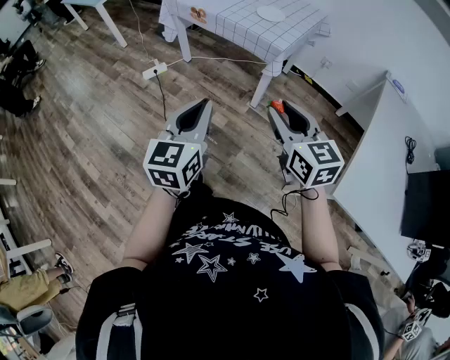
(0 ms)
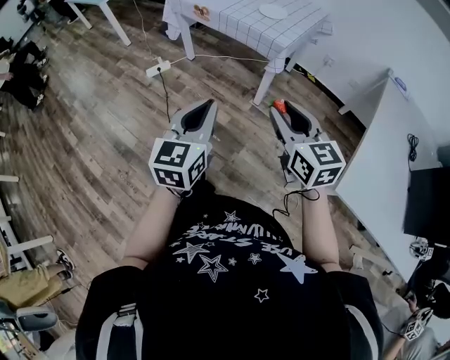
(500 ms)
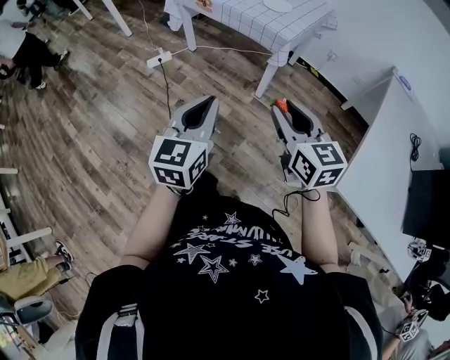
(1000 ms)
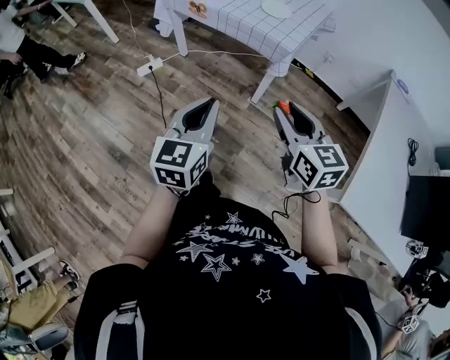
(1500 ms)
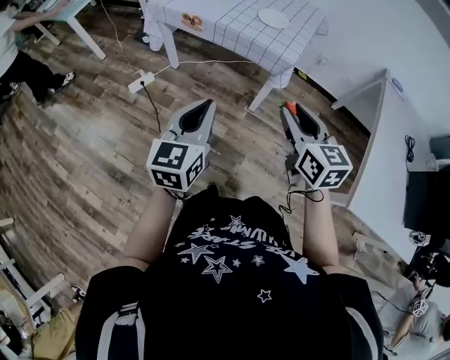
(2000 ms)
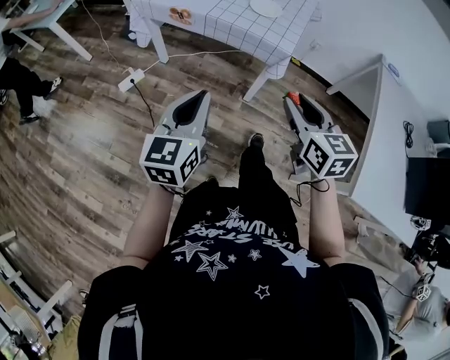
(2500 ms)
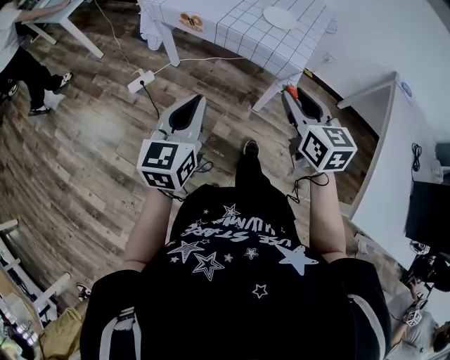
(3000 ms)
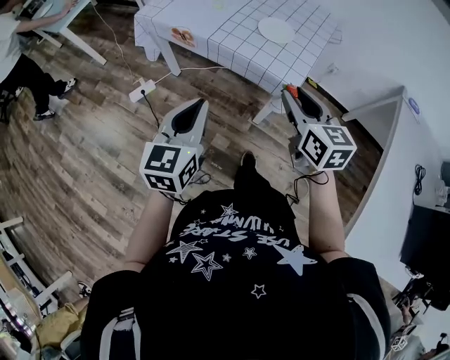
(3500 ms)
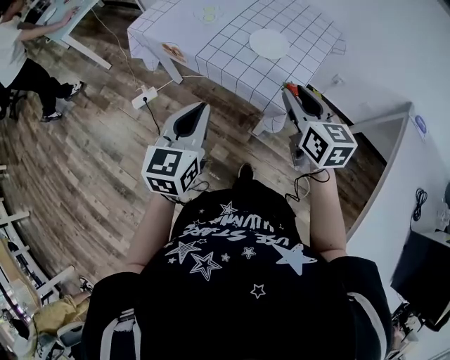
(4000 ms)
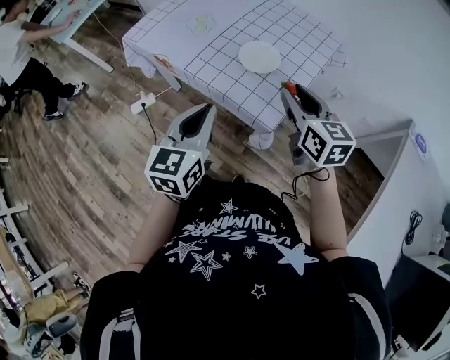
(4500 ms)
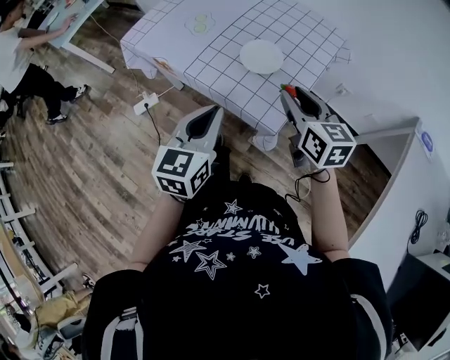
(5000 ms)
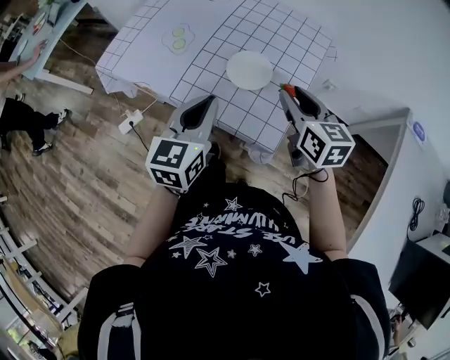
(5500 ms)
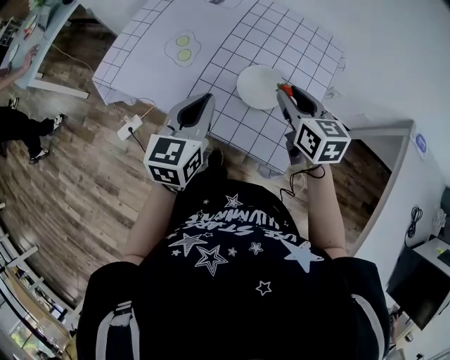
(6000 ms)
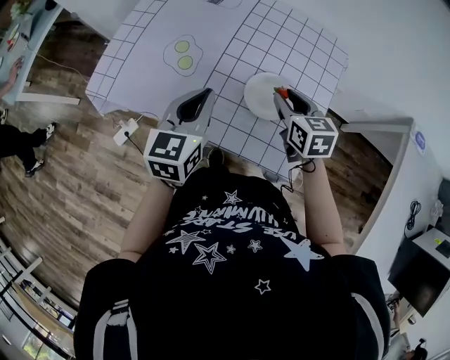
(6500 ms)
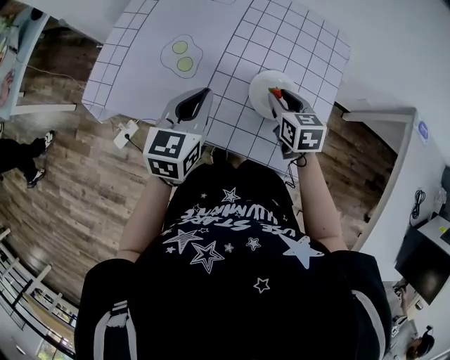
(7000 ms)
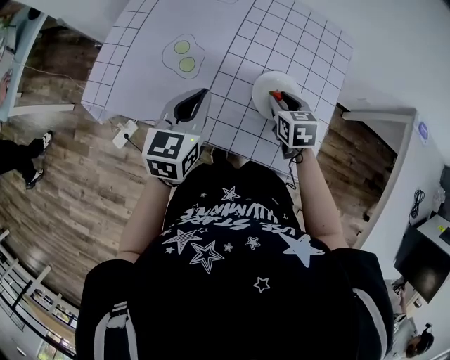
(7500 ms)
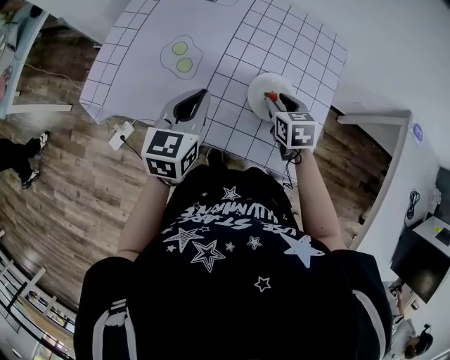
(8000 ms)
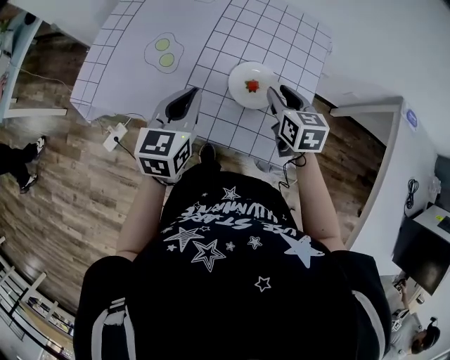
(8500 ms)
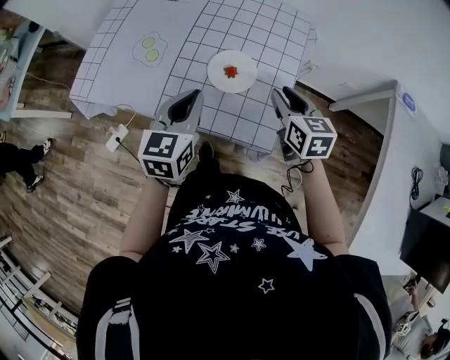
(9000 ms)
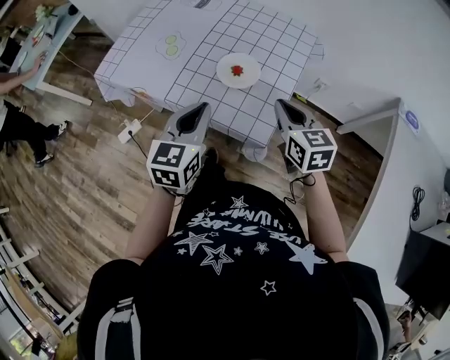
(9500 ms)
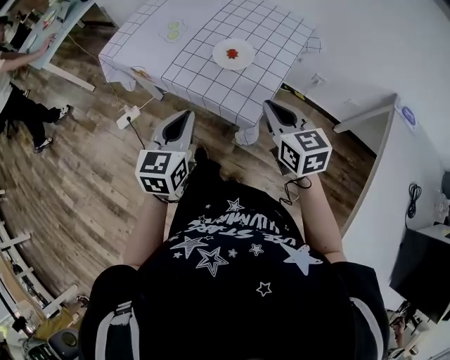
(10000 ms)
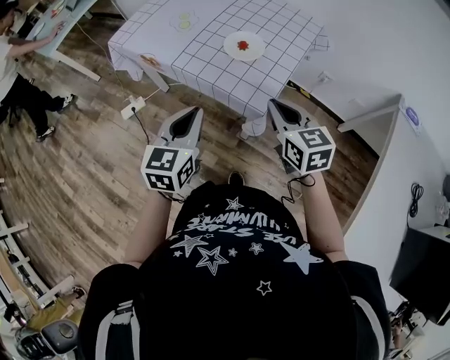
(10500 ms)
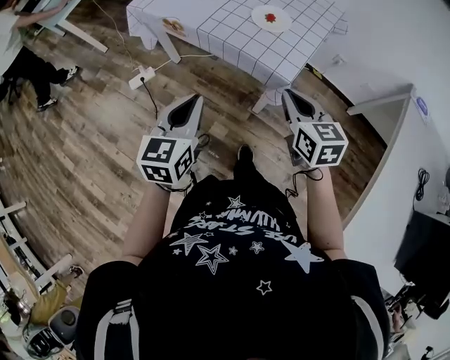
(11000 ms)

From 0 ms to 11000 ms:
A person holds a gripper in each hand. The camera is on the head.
From 0 ms to 2000 ms: Both grippers move forward and to the left, approximately 15 cm.
From 2000 ms to 3500 ms: Both grippers move forward, approximately 20 cm.
From 3500 ms to 5500 ms: Both grippers travel together forward and to the right, about 30 cm.
From 5500 ms to 7500 ms: The right gripper shifts some 25 cm downward, forward and to the left, and rotates approximately 30 degrees. Meanwhile the left gripper heads forward, to the left and downward, covering roughly 20 cm.
From 7500 ms to 9000 ms: The left gripper heads to the right and backward, covering approximately 15 cm. Meanwhile the right gripper moves to the right, upward and backward, some 15 cm.
From 9000 ms to 11000 ms: Both grippers travel together backward, approximately 30 cm. The right gripper closes up.

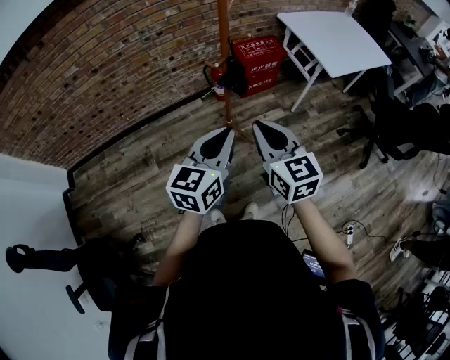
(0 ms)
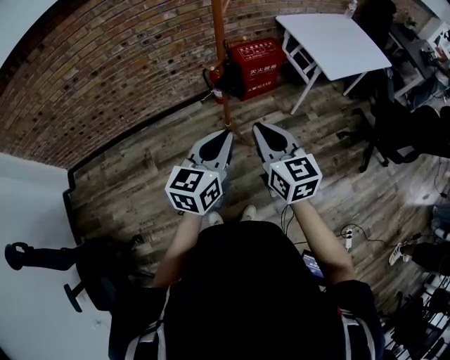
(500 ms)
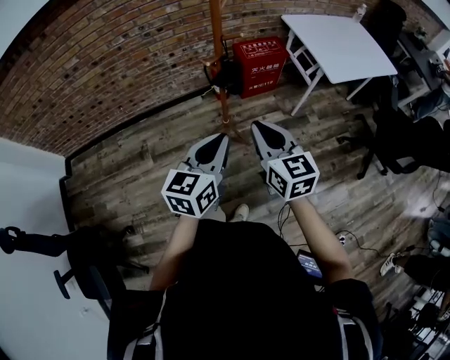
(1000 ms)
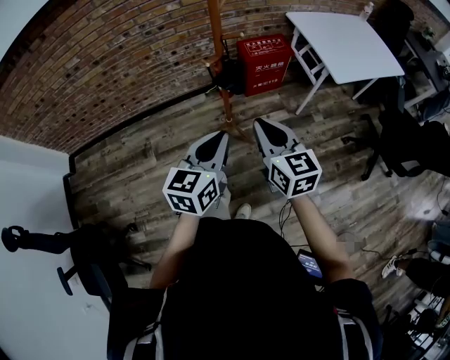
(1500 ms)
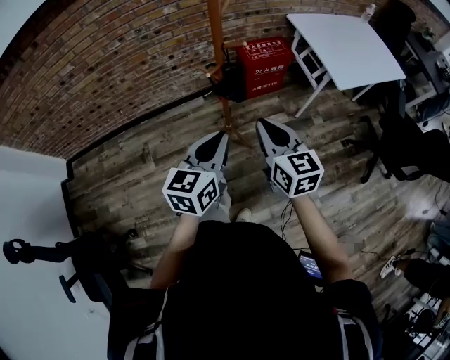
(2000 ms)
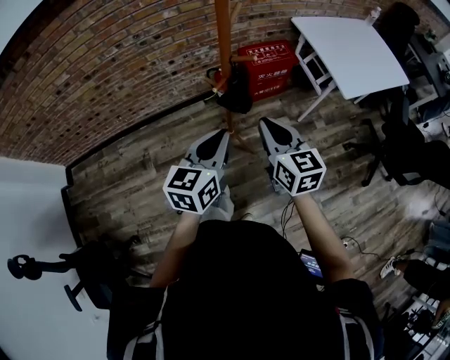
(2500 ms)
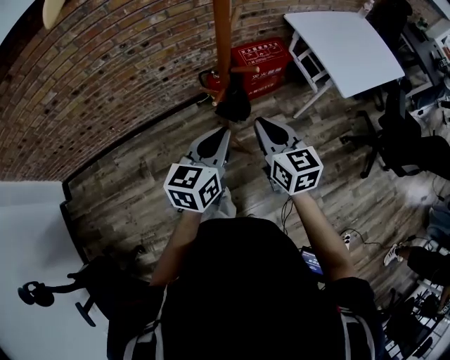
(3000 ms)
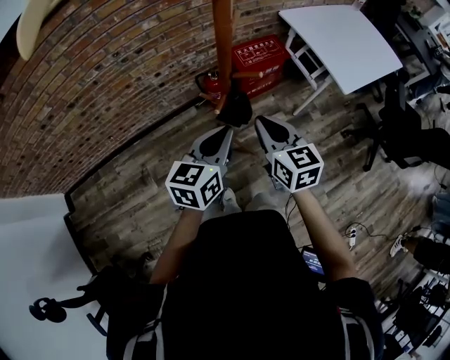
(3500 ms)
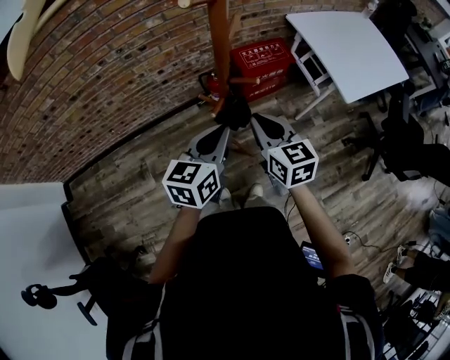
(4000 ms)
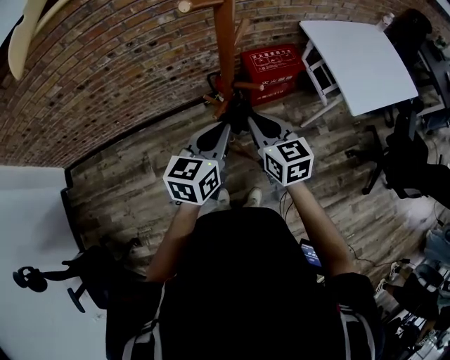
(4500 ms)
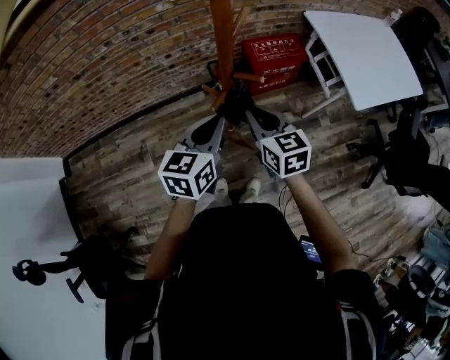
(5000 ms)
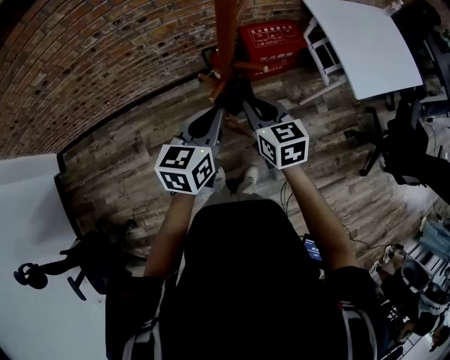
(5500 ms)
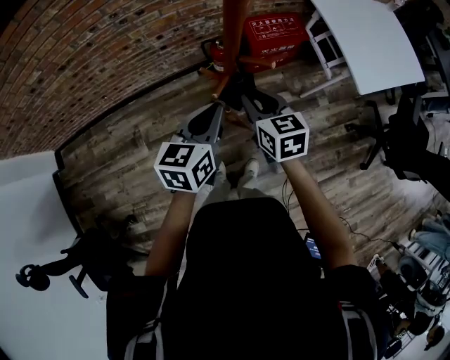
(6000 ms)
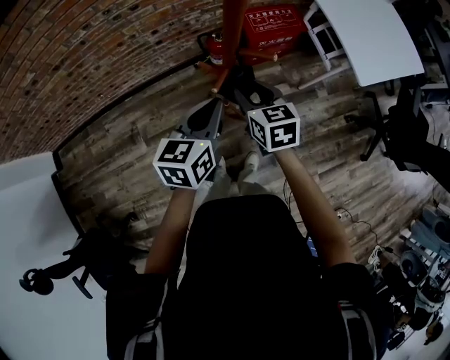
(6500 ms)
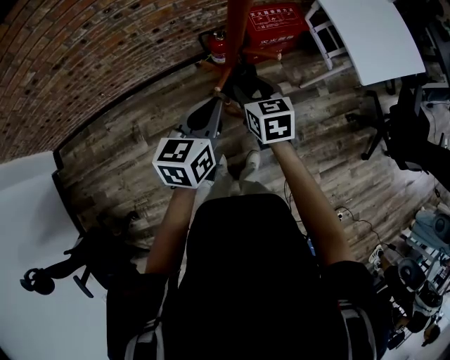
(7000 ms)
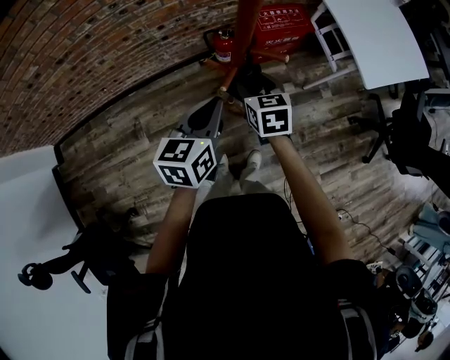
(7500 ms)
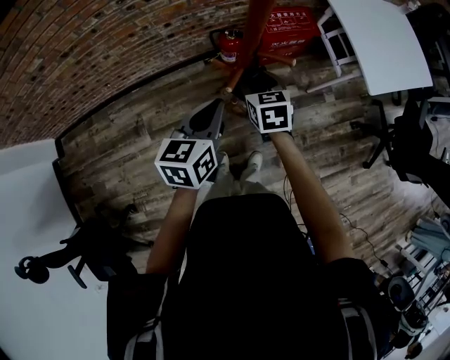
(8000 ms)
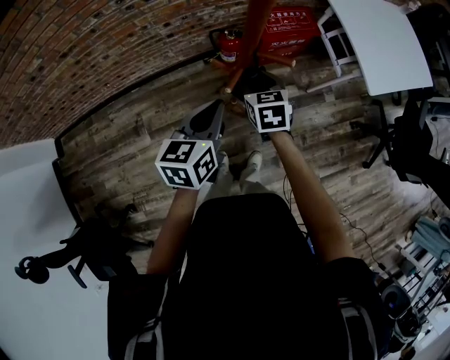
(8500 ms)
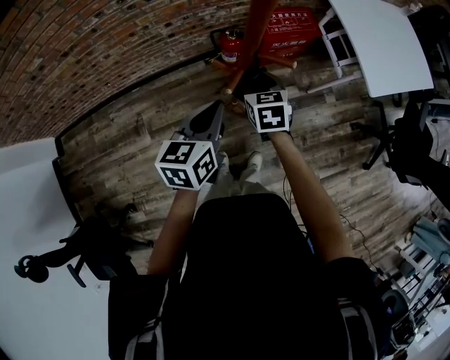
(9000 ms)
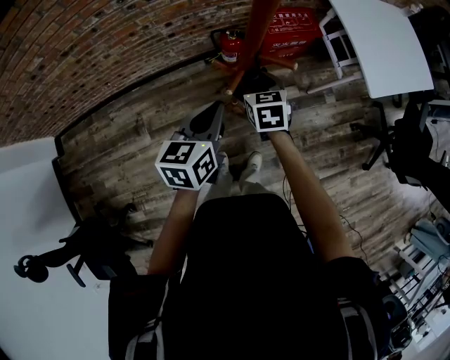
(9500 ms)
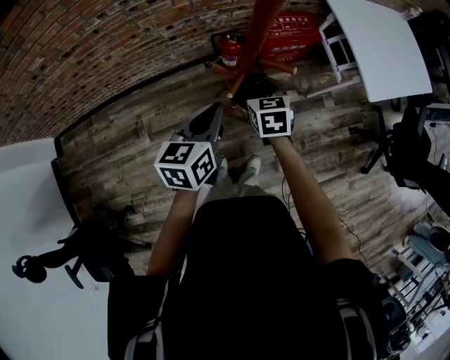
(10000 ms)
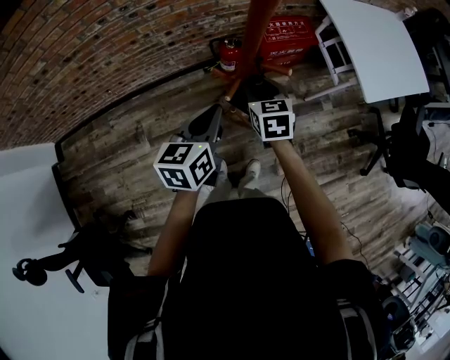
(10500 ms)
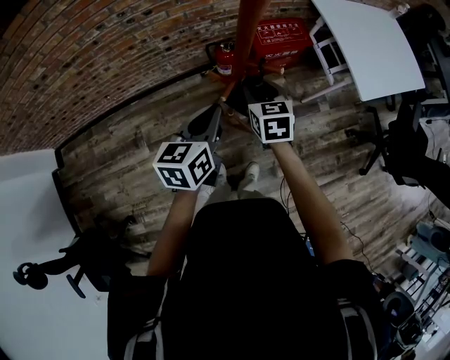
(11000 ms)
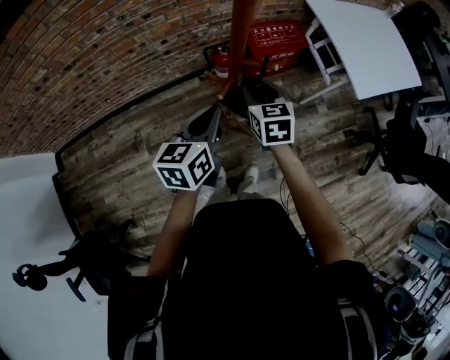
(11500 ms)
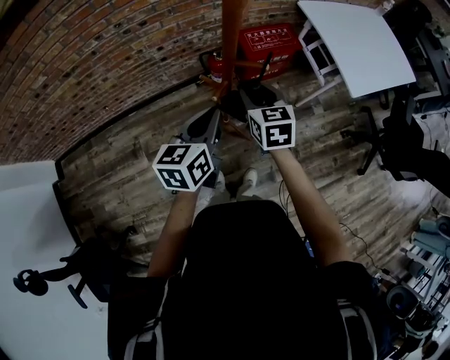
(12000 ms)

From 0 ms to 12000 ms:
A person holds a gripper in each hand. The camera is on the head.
From 0 ms to 2000 ms: The left gripper shifts some 10 cm forward; the right gripper heads forward and to the right, covering about 10 cm.
From 2000 ms to 4000 ms: The grippers both shift forward by roughly 15 cm.
From 4000 ms to 6000 ms: The right gripper goes approximately 5 cm downward, while the left gripper ends up some 5 cm from where it was.
From 6000 ms to 8000 ms: The right gripper is displaced downward by approximately 5 cm, and opens up.
From 8000 ms to 10000 ms: The grippers stay close to where they were, moving slightly.
From 10000 ms to 12000 ms: The right gripper is displaced upward by some 10 cm.

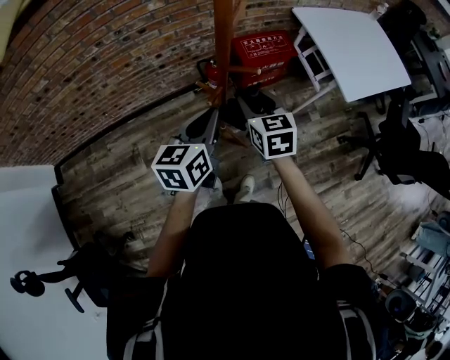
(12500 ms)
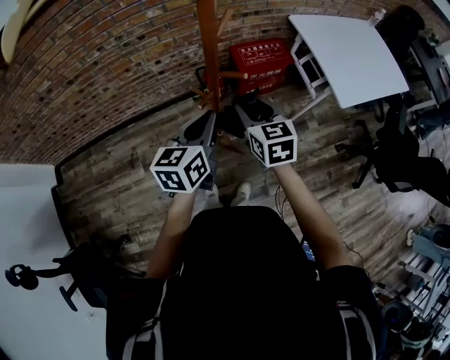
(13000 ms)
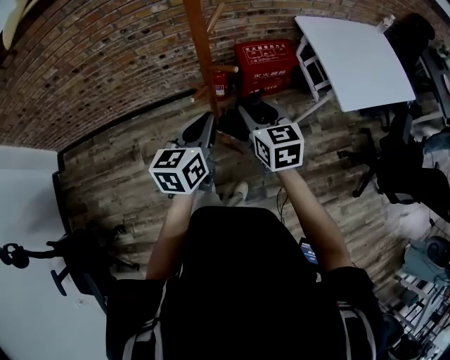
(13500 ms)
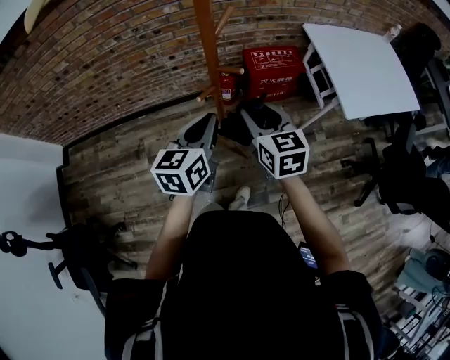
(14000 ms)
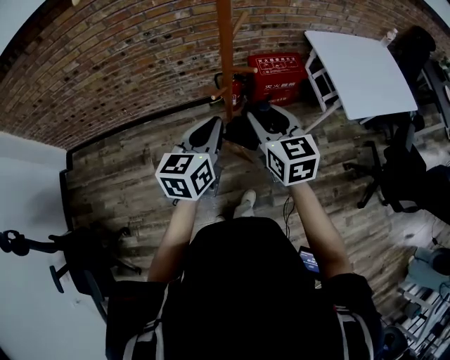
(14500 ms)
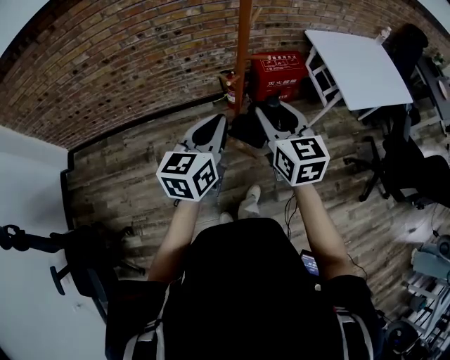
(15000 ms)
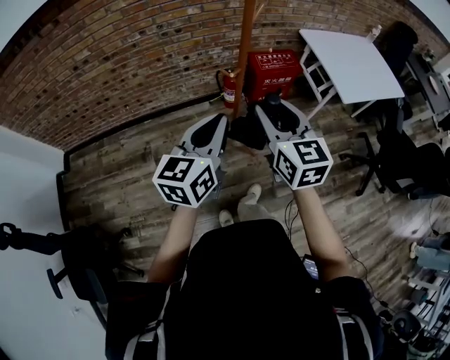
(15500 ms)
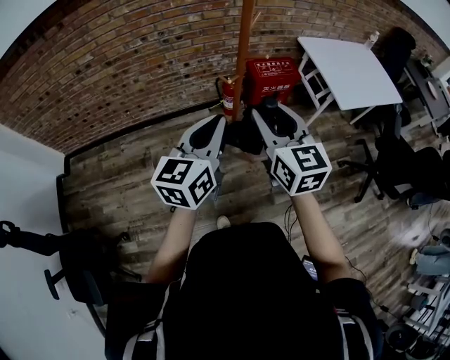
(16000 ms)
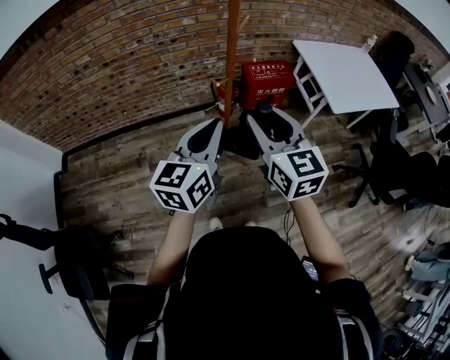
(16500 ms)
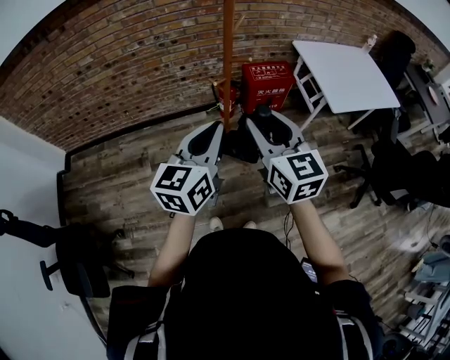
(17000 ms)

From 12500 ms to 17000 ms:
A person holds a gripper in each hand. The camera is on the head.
From 12500 ms to 14500 ms: The right gripper heads backward and upward, covering roughly 15 cm, while the left gripper is displaced backward by roughly 10 cm.
From 14500 ms to 17000 ms: Both grippers move backward and upward, approximately 20 cm.
